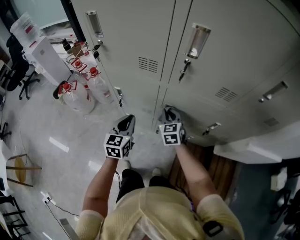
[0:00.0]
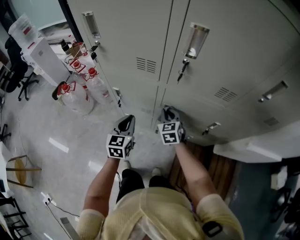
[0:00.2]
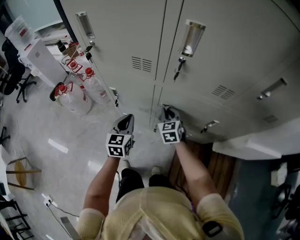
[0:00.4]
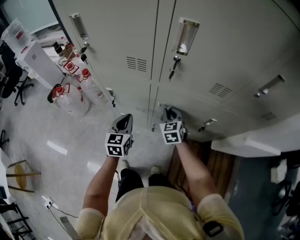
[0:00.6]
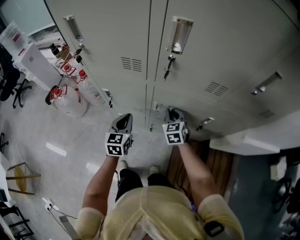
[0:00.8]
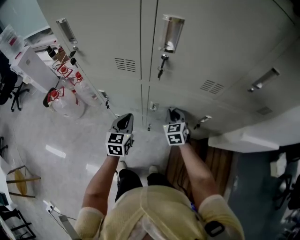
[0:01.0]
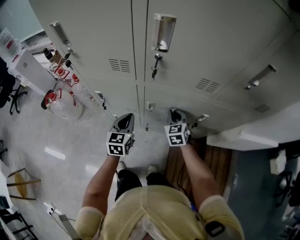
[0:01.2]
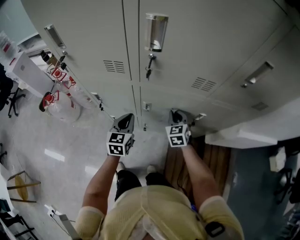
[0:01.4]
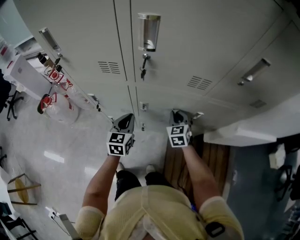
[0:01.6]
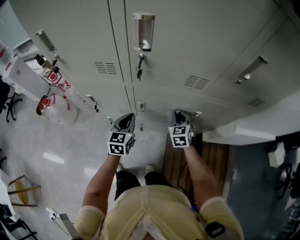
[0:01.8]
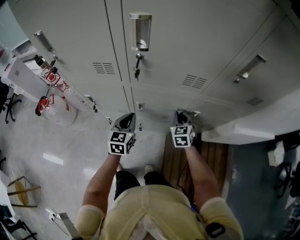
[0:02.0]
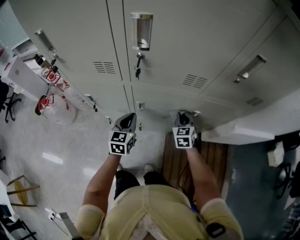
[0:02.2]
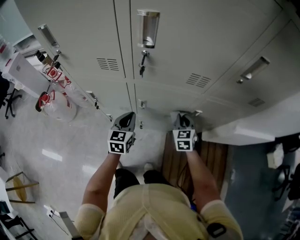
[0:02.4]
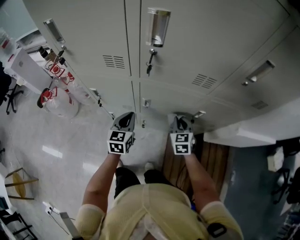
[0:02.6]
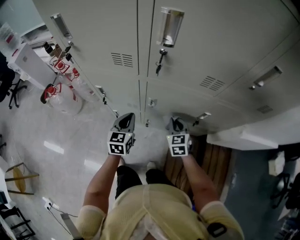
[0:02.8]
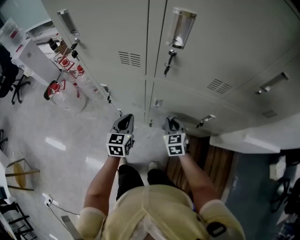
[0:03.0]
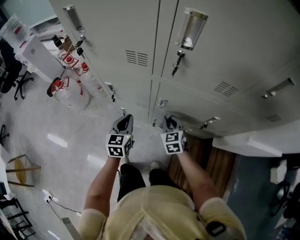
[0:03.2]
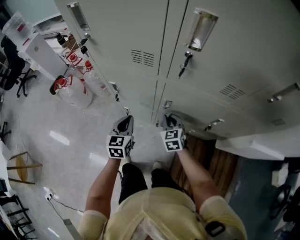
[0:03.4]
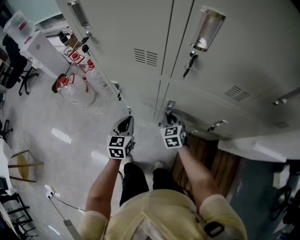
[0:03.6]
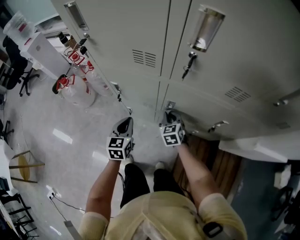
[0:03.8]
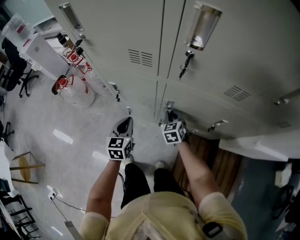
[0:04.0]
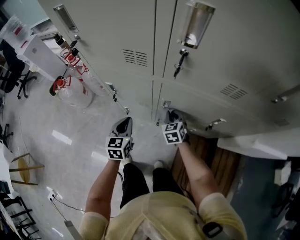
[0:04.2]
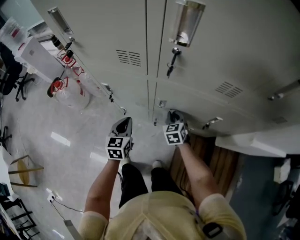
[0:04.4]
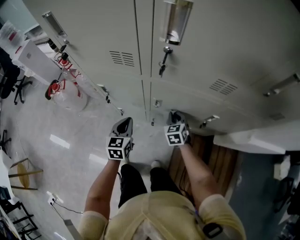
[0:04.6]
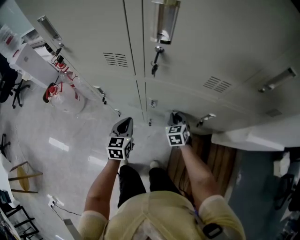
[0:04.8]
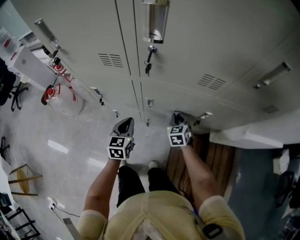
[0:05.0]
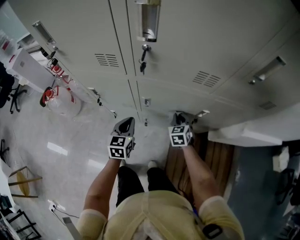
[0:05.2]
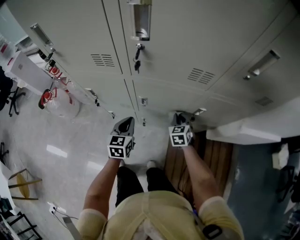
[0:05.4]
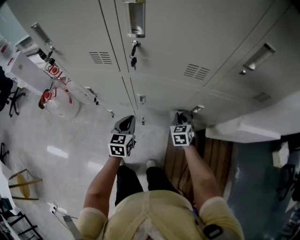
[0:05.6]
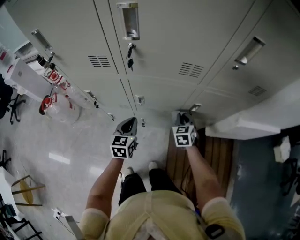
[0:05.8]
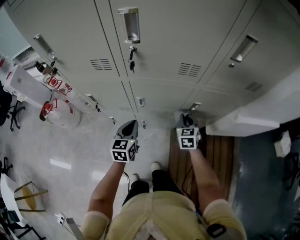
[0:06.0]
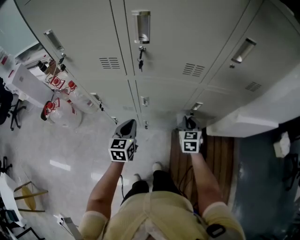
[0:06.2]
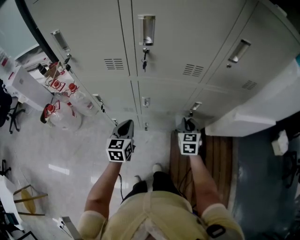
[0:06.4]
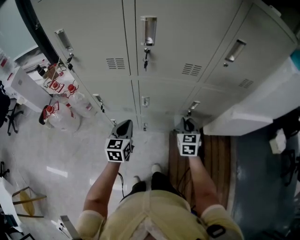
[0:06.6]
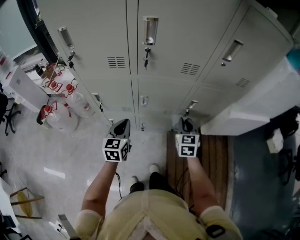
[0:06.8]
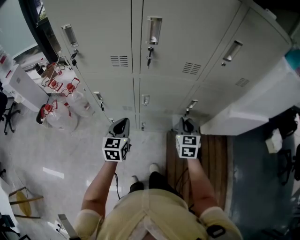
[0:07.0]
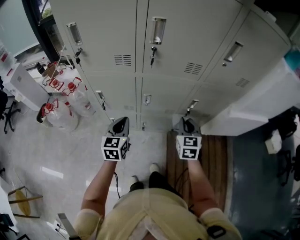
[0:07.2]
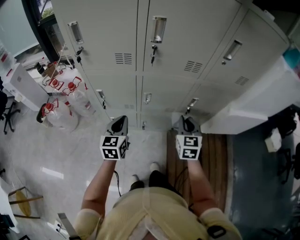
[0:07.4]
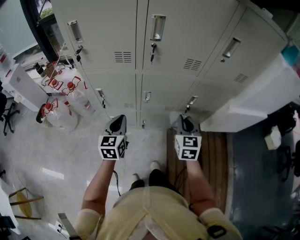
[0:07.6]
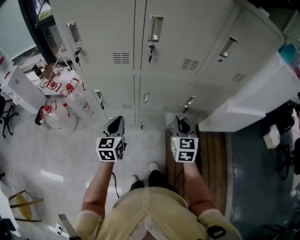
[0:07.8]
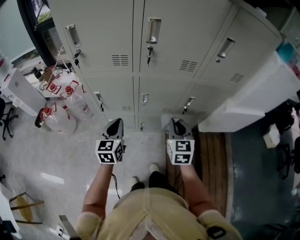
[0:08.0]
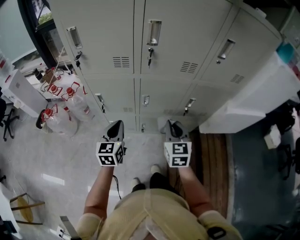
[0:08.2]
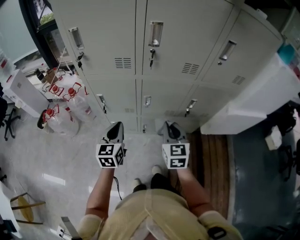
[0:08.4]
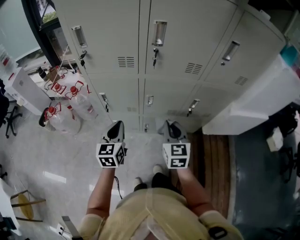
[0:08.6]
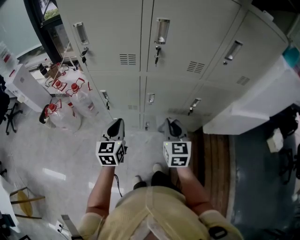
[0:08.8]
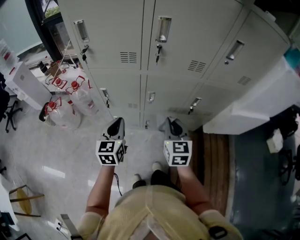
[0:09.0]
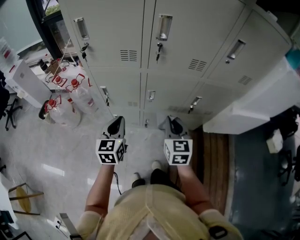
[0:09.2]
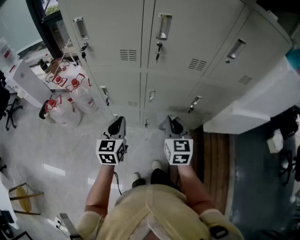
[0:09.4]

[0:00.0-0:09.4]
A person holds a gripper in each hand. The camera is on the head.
0:00.0 to 0:01.6: The right gripper is displaced to the right by approximately 15 cm, while the left gripper is displaced to the right by some 10 cm.
0:01.6 to 0:03.2: The right gripper is displaced to the left and backward by about 15 cm, while the left gripper travels to the left by approximately 10 cm.
0:03.2 to 0:04.8: The right gripper moves to the right and downward, some 10 cm, while the left gripper ends up approximately 5 cm from where it was.
0:04.8 to 0:06.2: The right gripper is displaced to the right, upward and backward by about 15 cm; the left gripper heads upward and to the right, covering about 10 cm.
0:06.2 to 0:07.8: The left gripper shifts roughly 10 cm upward, backward and to the left. Meanwhile the right gripper goes approximately 20 cm upward, backward and to the left.
0:07.8 to 0:09.4: The right gripper shifts roughly 5 cm to the left.

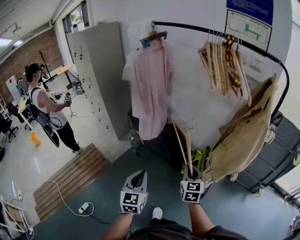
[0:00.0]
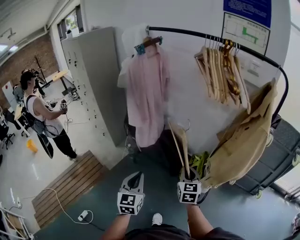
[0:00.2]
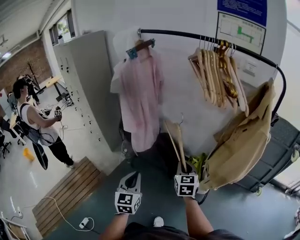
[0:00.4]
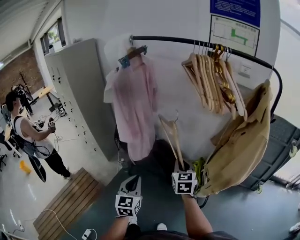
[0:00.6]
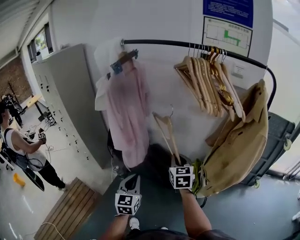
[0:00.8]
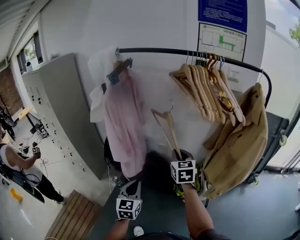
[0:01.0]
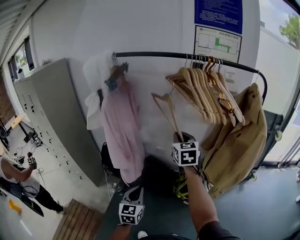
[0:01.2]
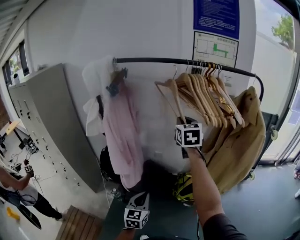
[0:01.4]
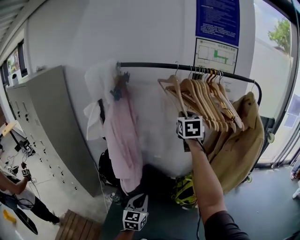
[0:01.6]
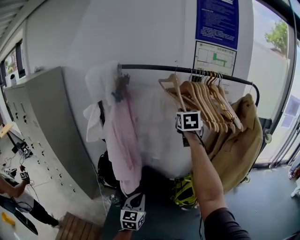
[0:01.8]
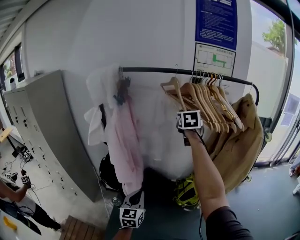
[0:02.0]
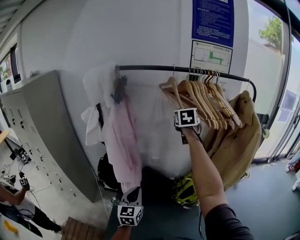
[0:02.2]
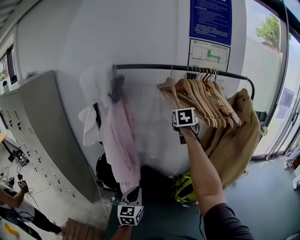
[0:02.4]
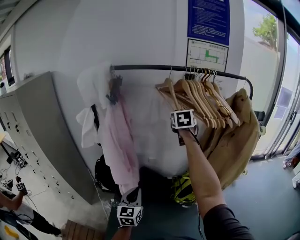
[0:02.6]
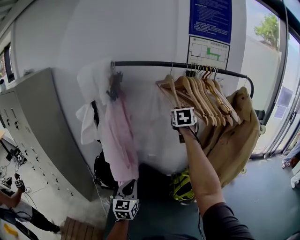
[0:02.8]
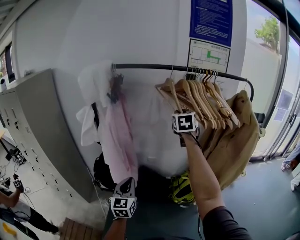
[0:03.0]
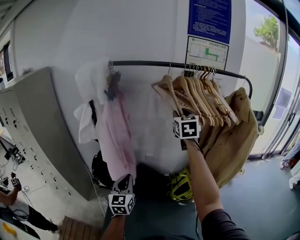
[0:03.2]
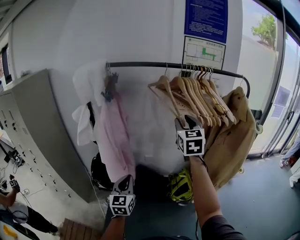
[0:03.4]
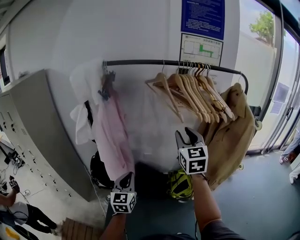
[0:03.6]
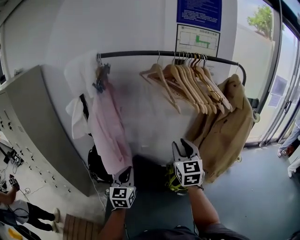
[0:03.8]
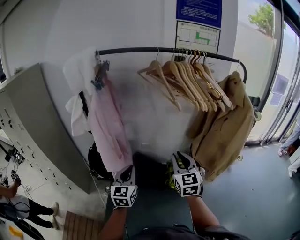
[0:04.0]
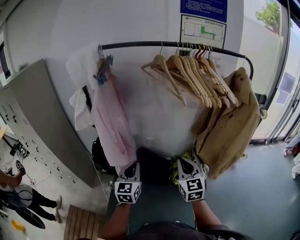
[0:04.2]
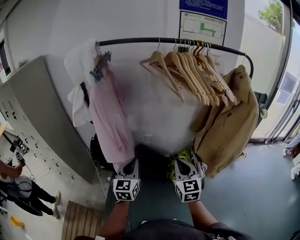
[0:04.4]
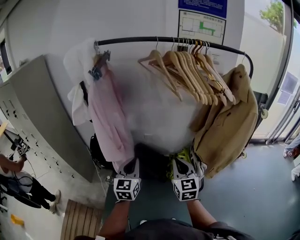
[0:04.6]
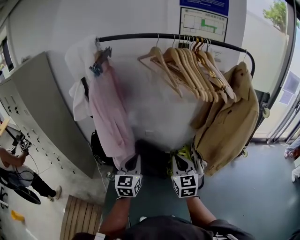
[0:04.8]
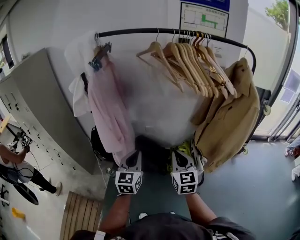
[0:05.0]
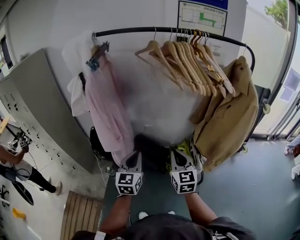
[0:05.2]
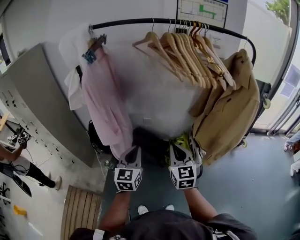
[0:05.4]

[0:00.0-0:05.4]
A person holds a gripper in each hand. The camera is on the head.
0:00.0 to 0:01.4: The left gripper ends up some 20 cm from where it was, and rotates approximately 30 degrees; the right gripper shifts by roughly 40 cm, and swivels some 20 degrees.
0:01.4 to 0:02.8: The left gripper goes about 10 cm to the left and upward; the right gripper is displaced forward by approximately 5 cm.
0:02.8 to 0:04.0: The right gripper shifts about 30 cm backward and downward.
0:04.0 to 0:05.4: The right gripper heads downward, covering some 5 cm. Meanwhile the left gripper travels to the right by some 10 cm.

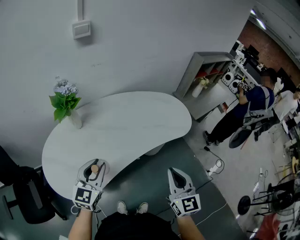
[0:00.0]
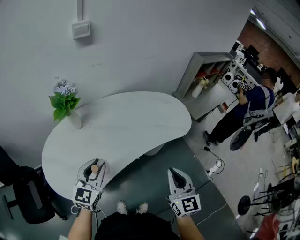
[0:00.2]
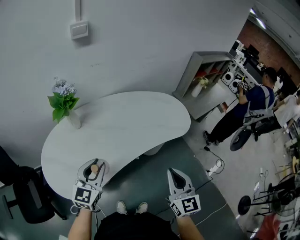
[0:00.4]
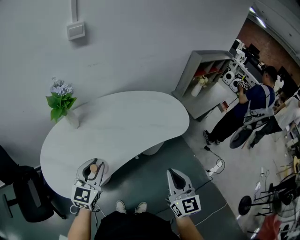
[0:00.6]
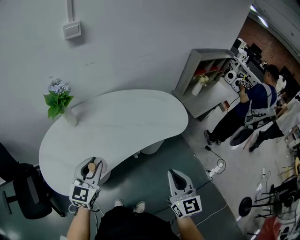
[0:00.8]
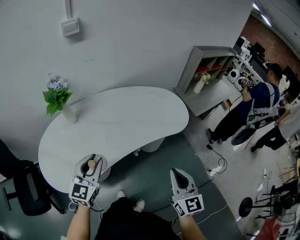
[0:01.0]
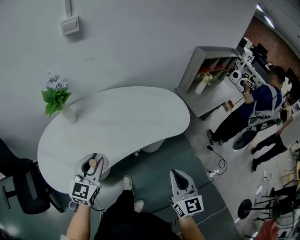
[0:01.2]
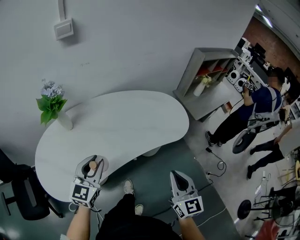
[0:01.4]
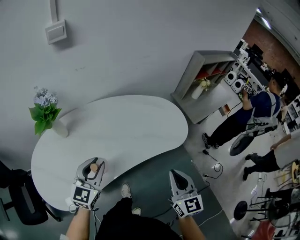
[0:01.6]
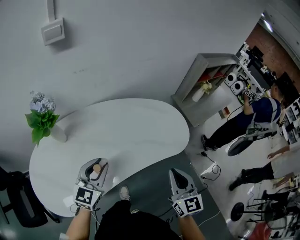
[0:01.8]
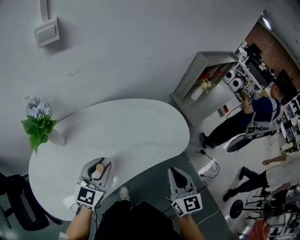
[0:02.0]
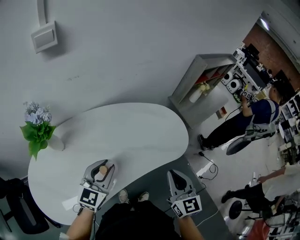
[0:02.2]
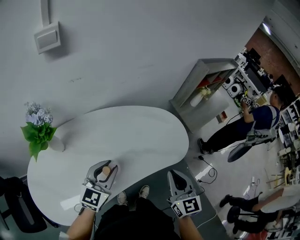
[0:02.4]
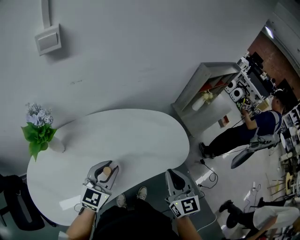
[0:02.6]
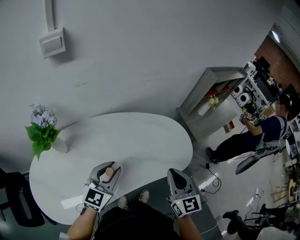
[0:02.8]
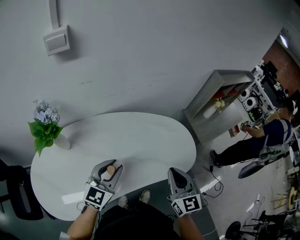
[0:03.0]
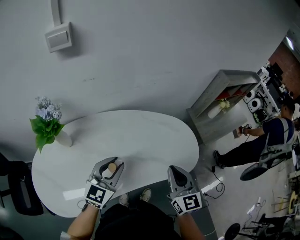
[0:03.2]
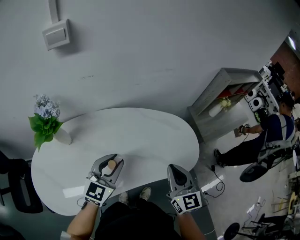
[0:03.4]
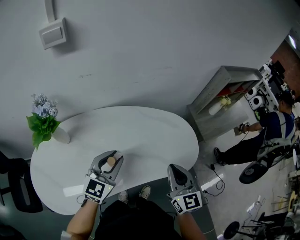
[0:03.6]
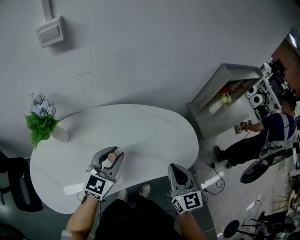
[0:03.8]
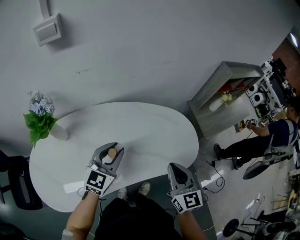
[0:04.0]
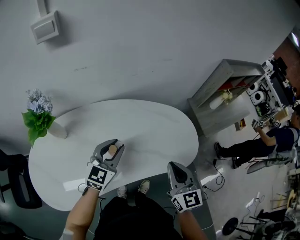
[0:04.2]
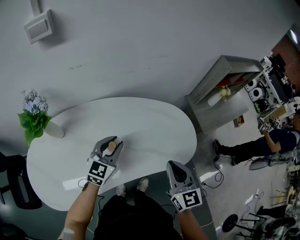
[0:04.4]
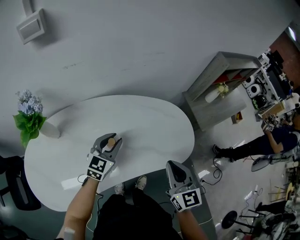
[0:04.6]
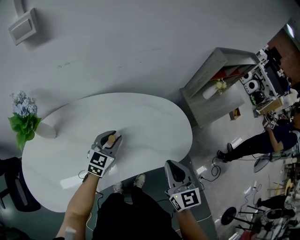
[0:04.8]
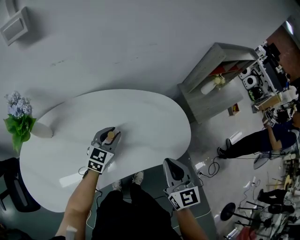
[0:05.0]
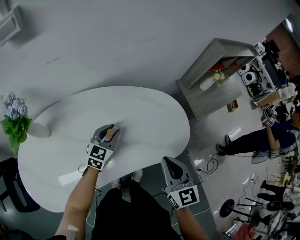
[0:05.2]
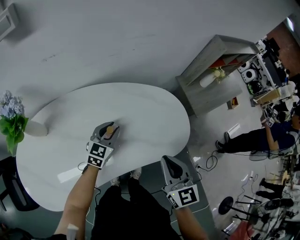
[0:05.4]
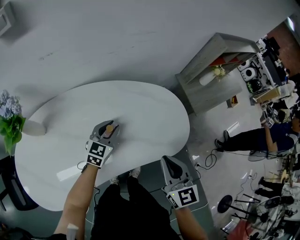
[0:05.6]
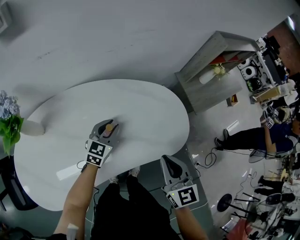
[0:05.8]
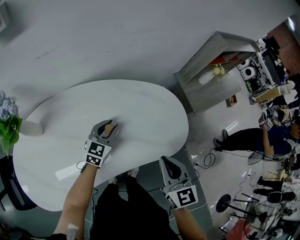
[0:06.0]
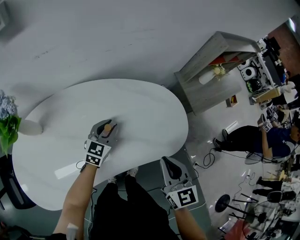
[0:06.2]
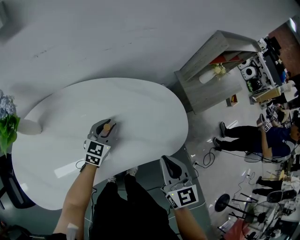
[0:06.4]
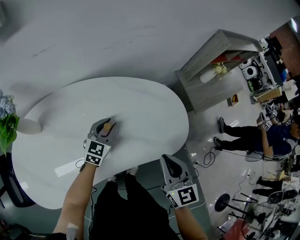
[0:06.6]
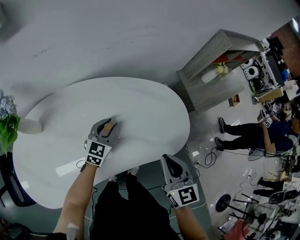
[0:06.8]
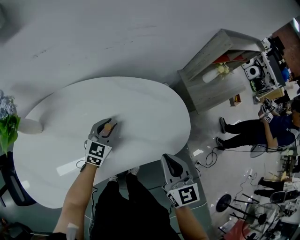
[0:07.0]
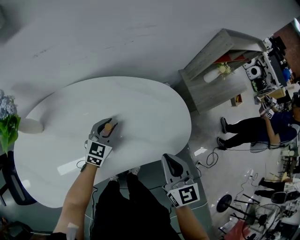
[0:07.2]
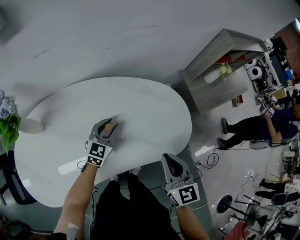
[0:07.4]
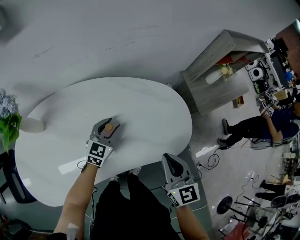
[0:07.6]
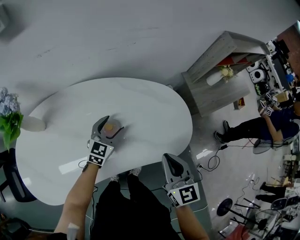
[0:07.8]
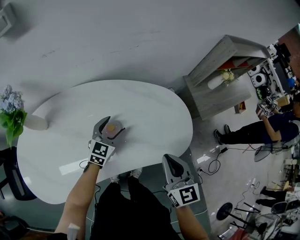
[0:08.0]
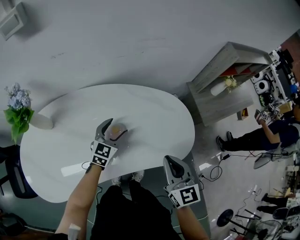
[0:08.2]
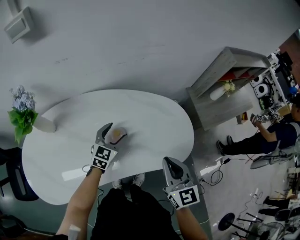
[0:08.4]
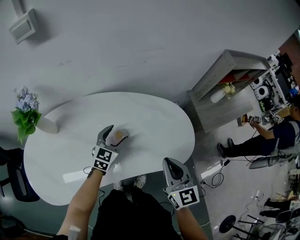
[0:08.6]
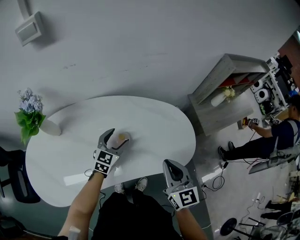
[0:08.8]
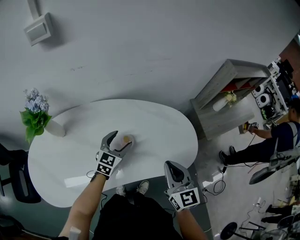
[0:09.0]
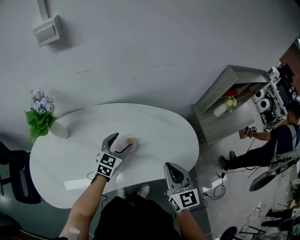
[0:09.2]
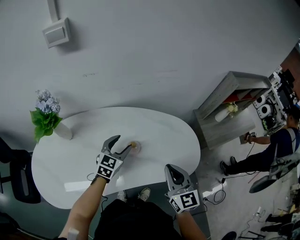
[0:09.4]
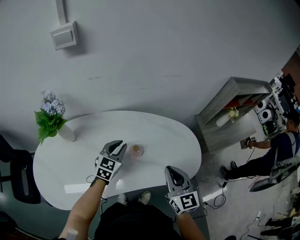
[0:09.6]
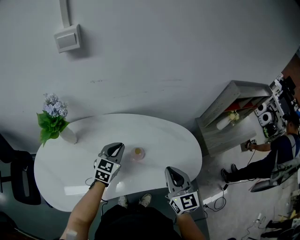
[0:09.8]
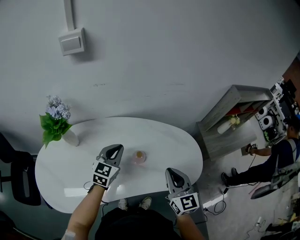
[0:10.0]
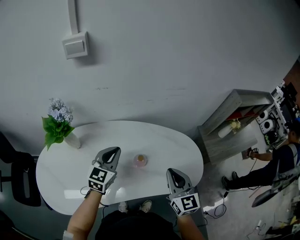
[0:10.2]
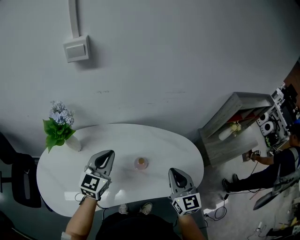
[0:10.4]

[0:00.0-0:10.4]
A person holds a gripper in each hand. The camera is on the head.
0:00.0 to 0:01.4: The right gripper travels to the right by approximately 10 cm; the left gripper shifts some 10 cm to the right and forward.
0:01.4 to 0:03.0: The two grippers go about 20 cm forward.
0:03.0 to 0:04.4: The left gripper heads forward and downward, covering about 10 cm.
0:04.4 to 0:06.0: The left gripper moves downward and forward, some 15 cm.
0:06.0 to 0:07.4: The grippers make only small movements.
0:07.4 to 0:09.0: The left gripper shifts about 5 cm upward, and opens up.
0:09.0 to 0:10.4: The left gripper travels upward and to the left by some 20 cm, and closes. The right gripper moves approximately 10 cm.
